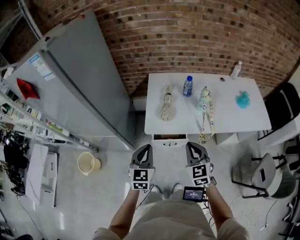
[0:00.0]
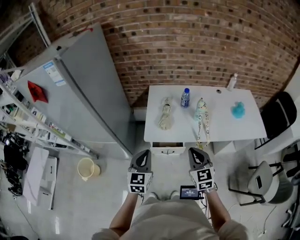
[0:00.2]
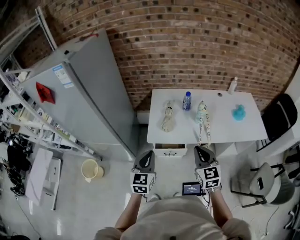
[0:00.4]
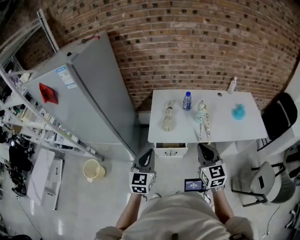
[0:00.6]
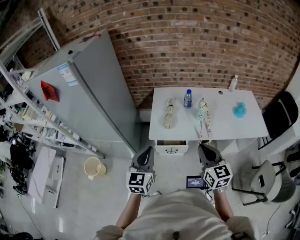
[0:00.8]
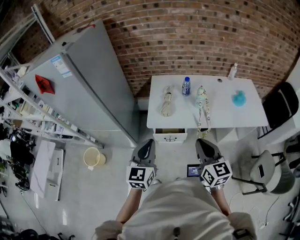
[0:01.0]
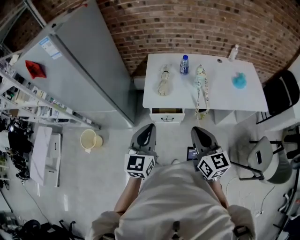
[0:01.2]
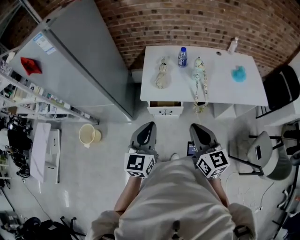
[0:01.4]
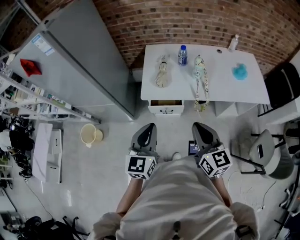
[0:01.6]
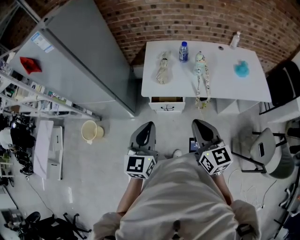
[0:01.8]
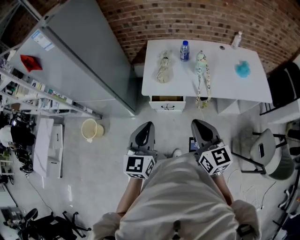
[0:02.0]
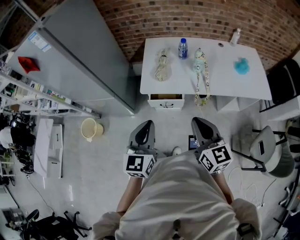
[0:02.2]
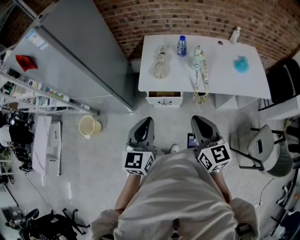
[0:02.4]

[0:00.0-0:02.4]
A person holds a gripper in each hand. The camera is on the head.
0:00.0 to 0:01.2: The right gripper moves upward and backward, approximately 15 cm, and changes its angle by roughly 30 degrees. The left gripper shifts roughly 15 cm upward, backward and to the right.
0:01.2 to 0:02.4: There are only small adjustments of the grippers.

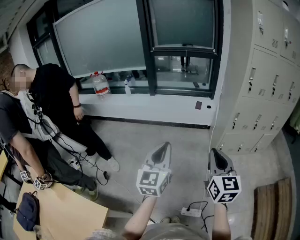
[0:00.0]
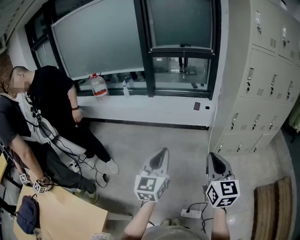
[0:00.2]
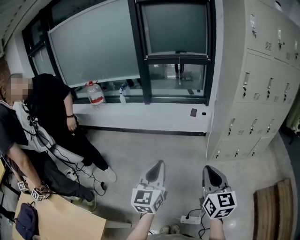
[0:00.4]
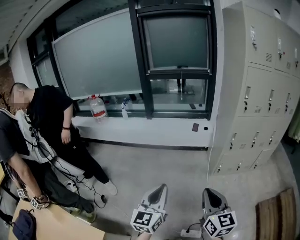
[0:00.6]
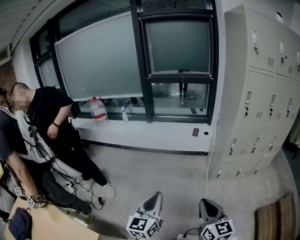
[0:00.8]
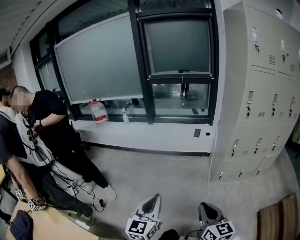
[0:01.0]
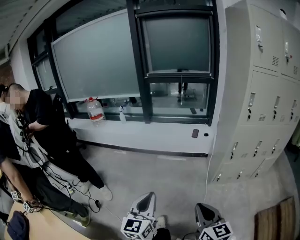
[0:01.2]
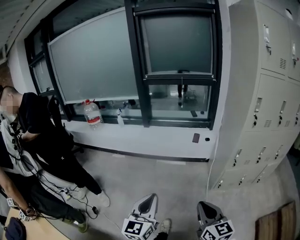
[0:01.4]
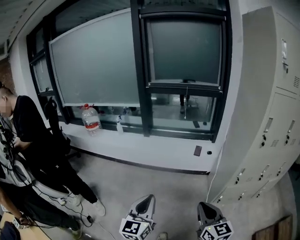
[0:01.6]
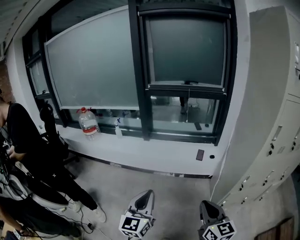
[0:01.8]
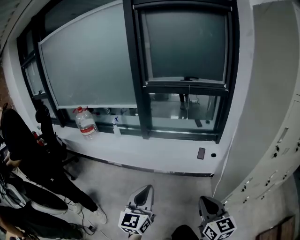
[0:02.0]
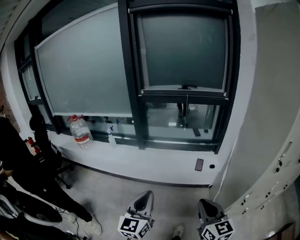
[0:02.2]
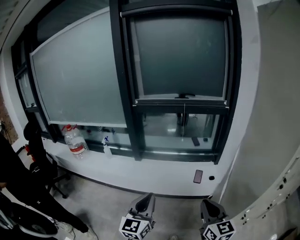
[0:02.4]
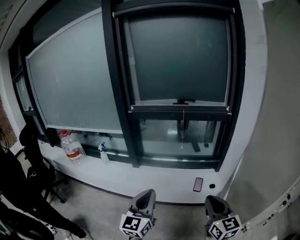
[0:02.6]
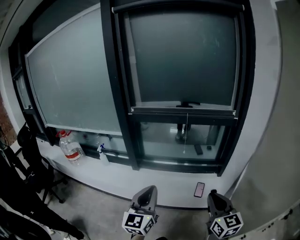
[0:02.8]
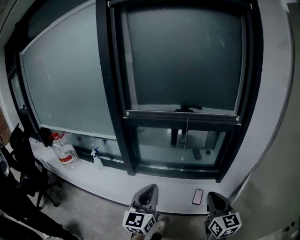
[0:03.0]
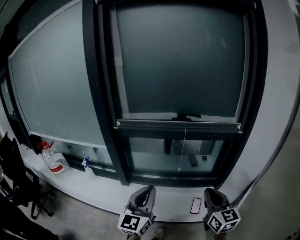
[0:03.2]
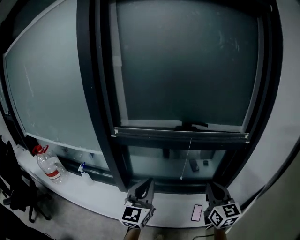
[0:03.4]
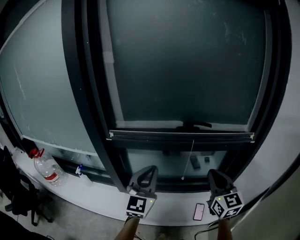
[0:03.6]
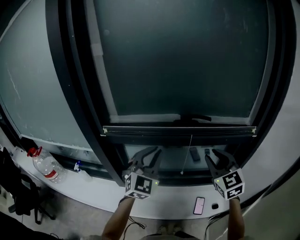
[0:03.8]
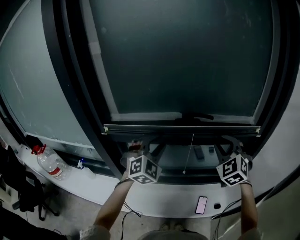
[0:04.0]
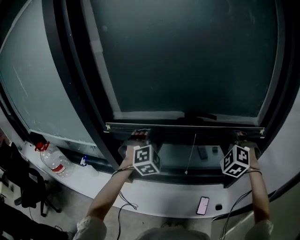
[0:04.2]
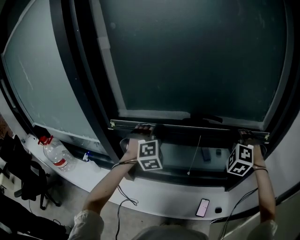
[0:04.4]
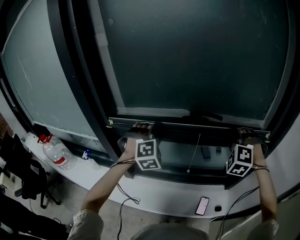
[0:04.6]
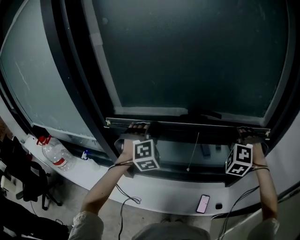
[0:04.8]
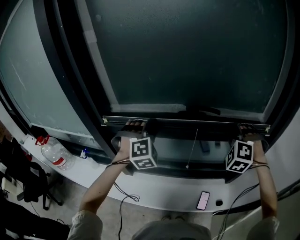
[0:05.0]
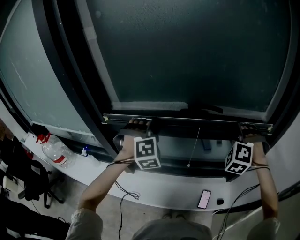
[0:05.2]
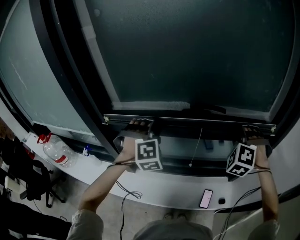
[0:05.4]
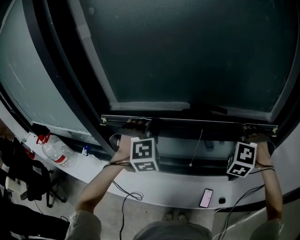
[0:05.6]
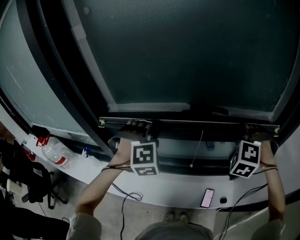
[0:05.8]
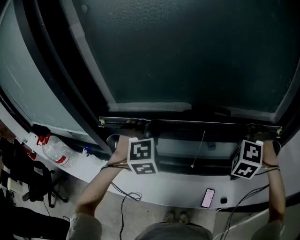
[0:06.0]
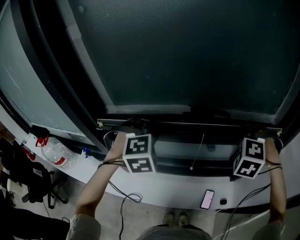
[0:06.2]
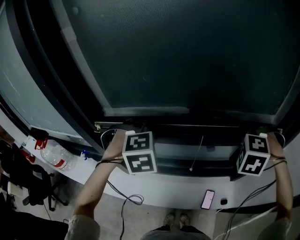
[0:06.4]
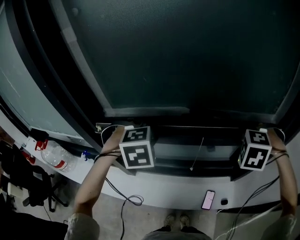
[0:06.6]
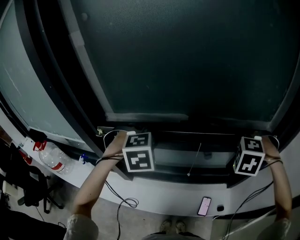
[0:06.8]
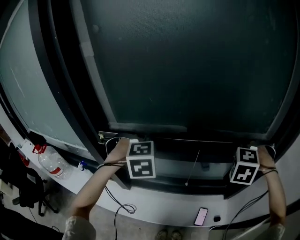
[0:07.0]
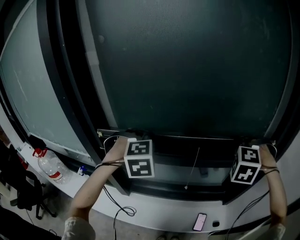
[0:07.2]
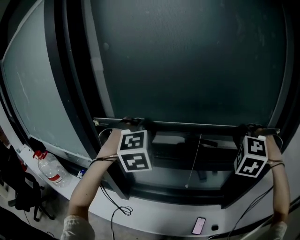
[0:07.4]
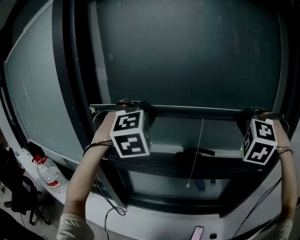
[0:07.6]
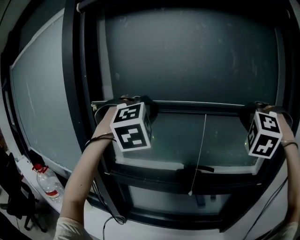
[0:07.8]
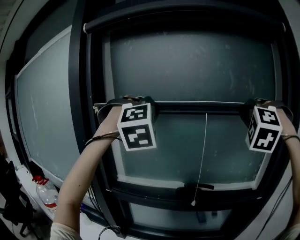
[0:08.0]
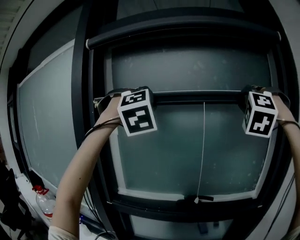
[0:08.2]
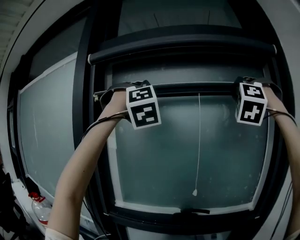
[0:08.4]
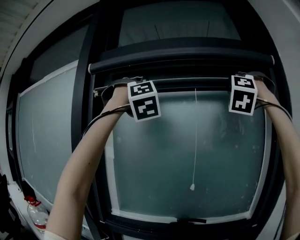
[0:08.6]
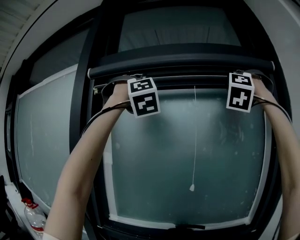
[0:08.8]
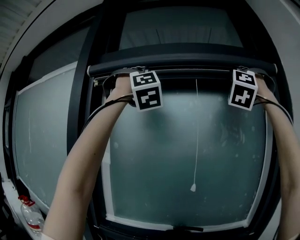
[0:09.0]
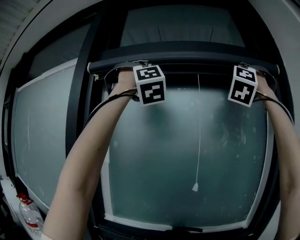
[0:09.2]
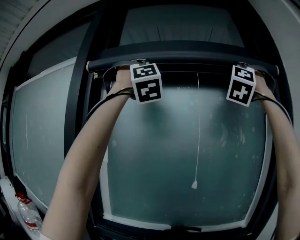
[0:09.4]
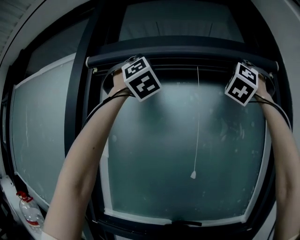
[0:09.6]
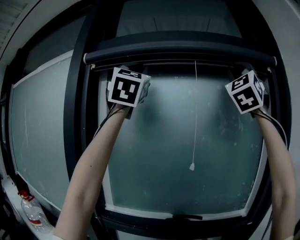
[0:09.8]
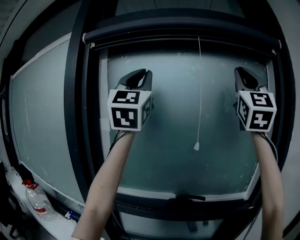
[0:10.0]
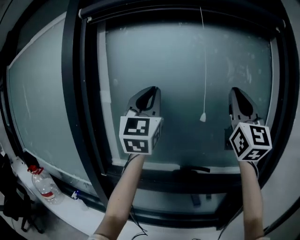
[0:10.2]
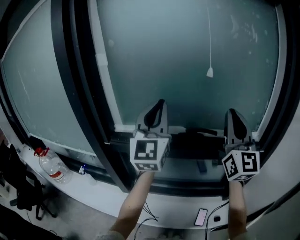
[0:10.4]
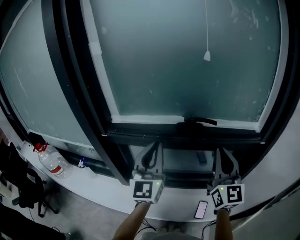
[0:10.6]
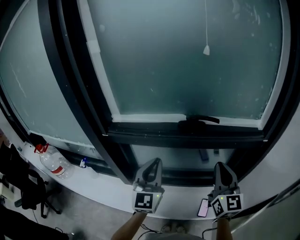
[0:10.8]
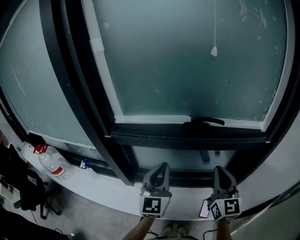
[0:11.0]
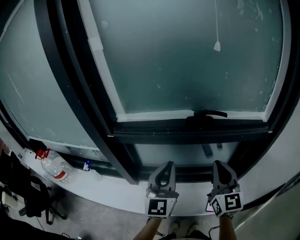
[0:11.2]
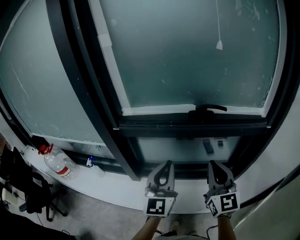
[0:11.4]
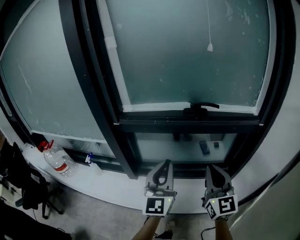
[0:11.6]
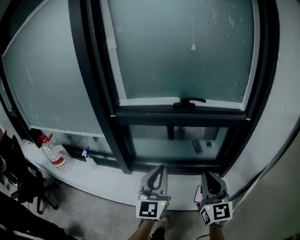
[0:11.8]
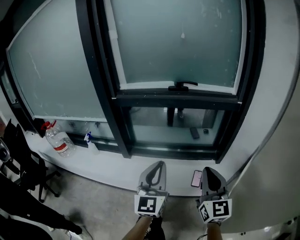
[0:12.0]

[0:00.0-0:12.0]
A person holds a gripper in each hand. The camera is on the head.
0:00.0 to 0:01.6: The two grippers go about 20 cm forward.
0:01.6 to 0:03.0: Both grippers are carried forward, about 60 cm.
0:03.0 to 0:04.4: The two grippers travel together, forward, roughly 50 cm. The left gripper twists approximately 70 degrees clockwise, seen from behind, and opens up. Meanwhile the right gripper rotates around the line of its fingers by some 80 degrees, counterclockwise from behind, and opens up.
0:04.4 to 0:06.0: The grippers move only a little.
0:06.0 to 0:07.6: Both grippers travel together upward, roughly 25 cm.
0:07.6 to 0:09.0: The two grippers go some 40 cm upward. The right gripper tips its fingers upward by some 40 degrees. The left gripper points its fingers some 40 degrees further upward.
0:09.0 to 0:10.4: Both grippers travel together downward, about 40 cm. The left gripper rotates around the line of its fingers by roughly 80 degrees, counterclockwise from behind. Meanwhile the right gripper twists roughly 90 degrees clockwise, seen from behind.
0:10.4 to 0:12.0: Both grippers travel together backward and downward, roughly 50 cm. The right gripper swivels roughly 30 degrees.

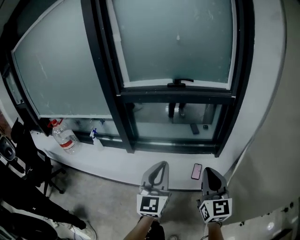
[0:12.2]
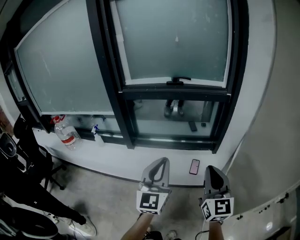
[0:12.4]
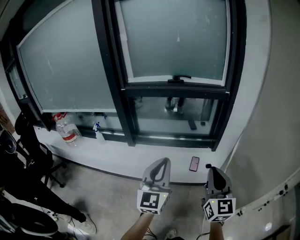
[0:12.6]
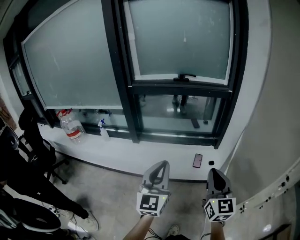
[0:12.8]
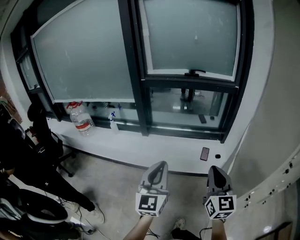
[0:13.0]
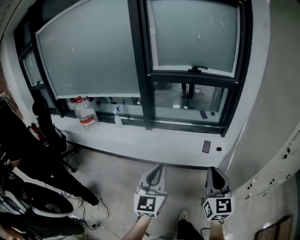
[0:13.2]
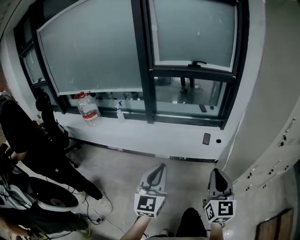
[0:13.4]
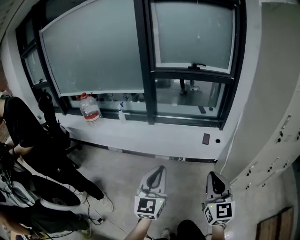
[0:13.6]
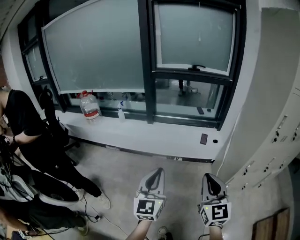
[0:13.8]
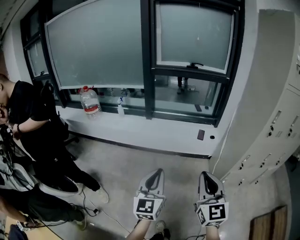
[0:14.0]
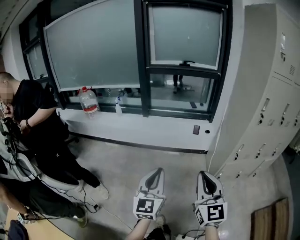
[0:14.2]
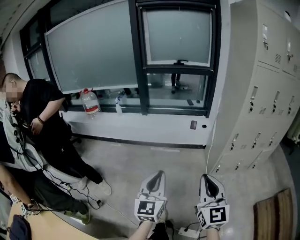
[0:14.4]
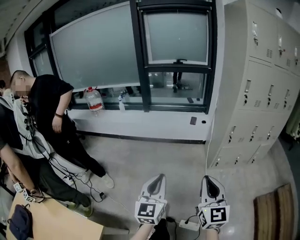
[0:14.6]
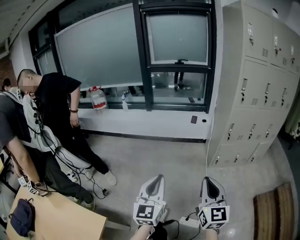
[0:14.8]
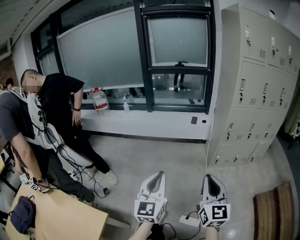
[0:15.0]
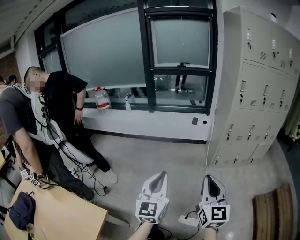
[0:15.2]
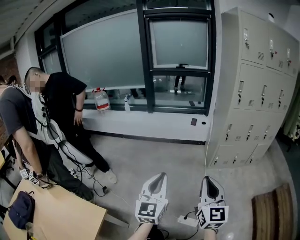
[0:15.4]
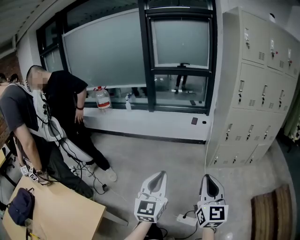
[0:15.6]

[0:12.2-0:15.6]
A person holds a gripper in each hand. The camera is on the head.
0:12.2 to 0:13.8: Both grippers are carried backward, some 50 cm.
0:13.8 to 0:15.6: Both grippers are carried backward, about 50 cm.

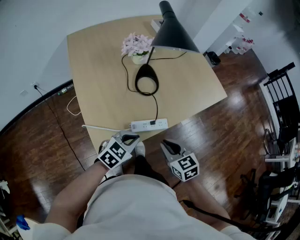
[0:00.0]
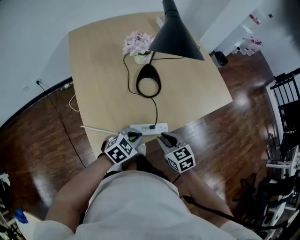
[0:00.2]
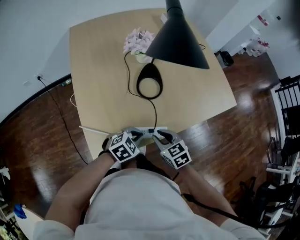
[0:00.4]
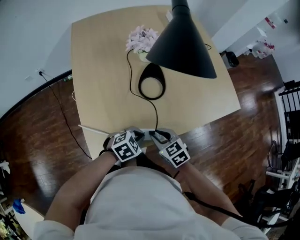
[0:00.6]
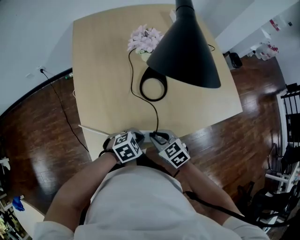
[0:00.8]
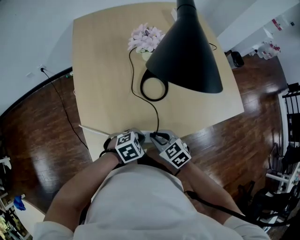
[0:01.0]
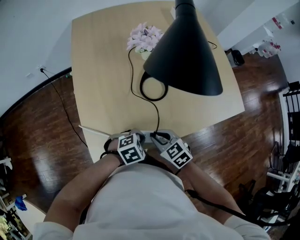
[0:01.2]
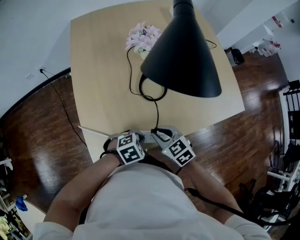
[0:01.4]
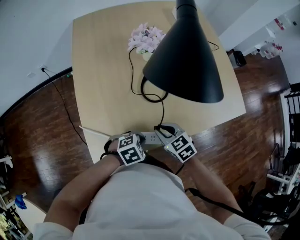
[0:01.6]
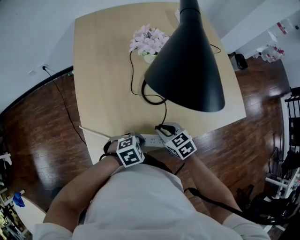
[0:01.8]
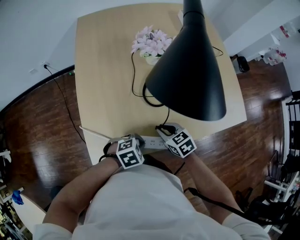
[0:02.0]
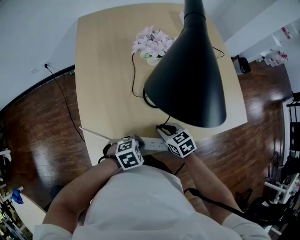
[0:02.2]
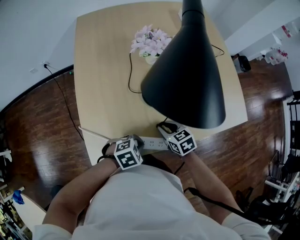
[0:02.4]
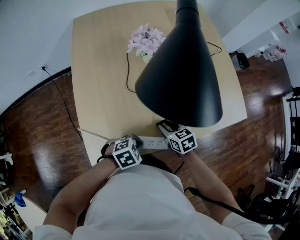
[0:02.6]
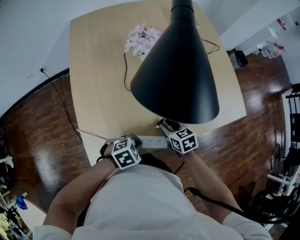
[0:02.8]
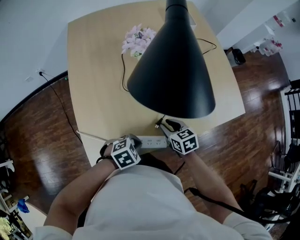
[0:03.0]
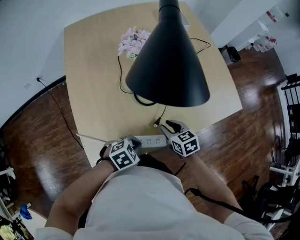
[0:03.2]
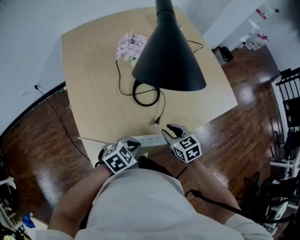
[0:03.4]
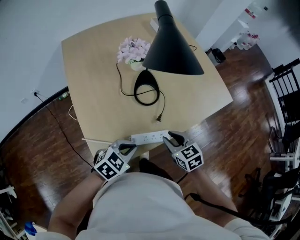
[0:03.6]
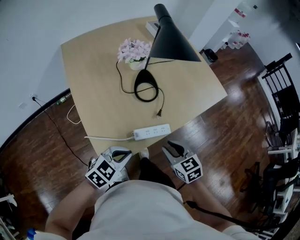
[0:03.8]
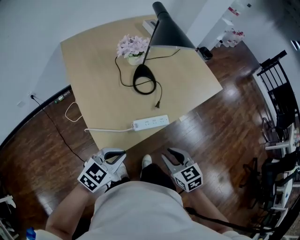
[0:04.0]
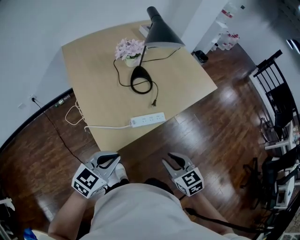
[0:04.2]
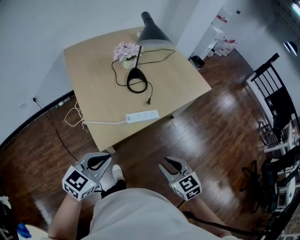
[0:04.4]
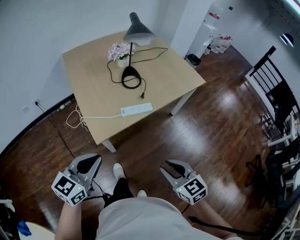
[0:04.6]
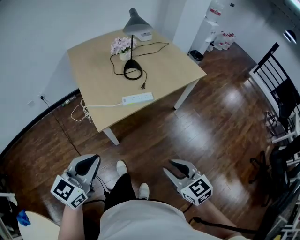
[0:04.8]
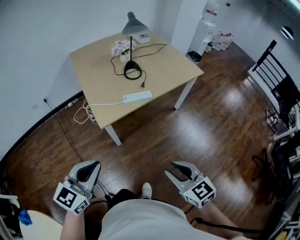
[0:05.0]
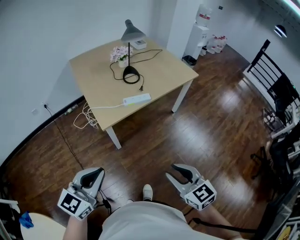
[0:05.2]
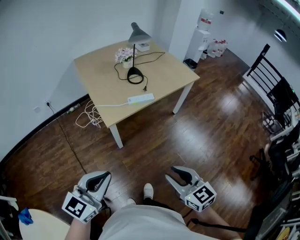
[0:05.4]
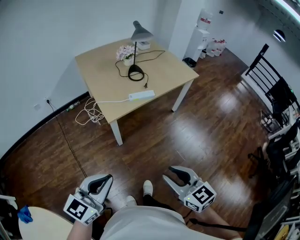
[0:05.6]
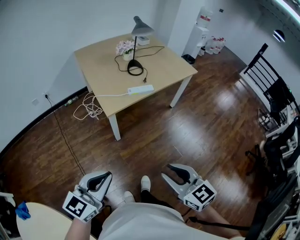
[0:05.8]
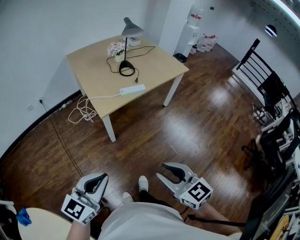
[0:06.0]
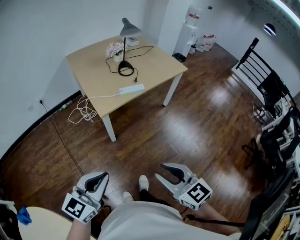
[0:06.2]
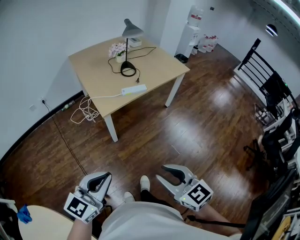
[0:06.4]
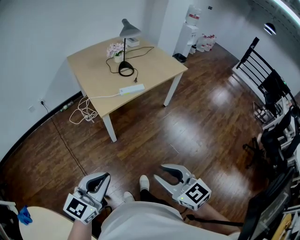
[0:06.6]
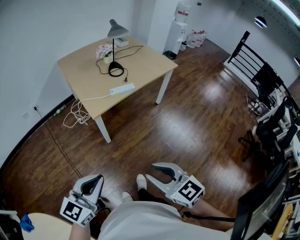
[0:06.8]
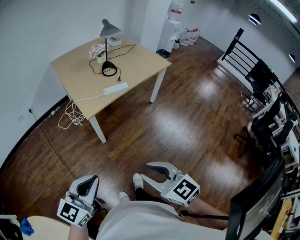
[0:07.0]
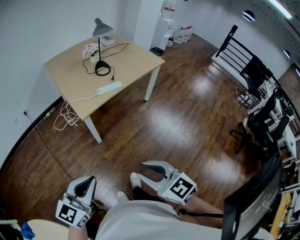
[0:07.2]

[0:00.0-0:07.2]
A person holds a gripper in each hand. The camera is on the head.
0:00.0 to 0:01.4: The right gripper shifts by approximately 15 cm, and swivels roughly 30 degrees. The left gripper is displaced downward by about 10 cm, and rotates approximately 30 degrees.
0:01.4 to 0:02.8: The right gripper ends up some 10 cm from where it was, and rotates approximately 20 degrees.
0:02.8 to 0:04.4: The right gripper moves about 40 cm, and turns by roughly 20 degrees, while the left gripper shifts by about 35 cm, and points its fingers about 40 degrees further upward.
0:04.4 to 0:05.8: The grippers both shift backward by some 35 cm.
0:05.8 to 0:07.2: The grippers move only a little.
